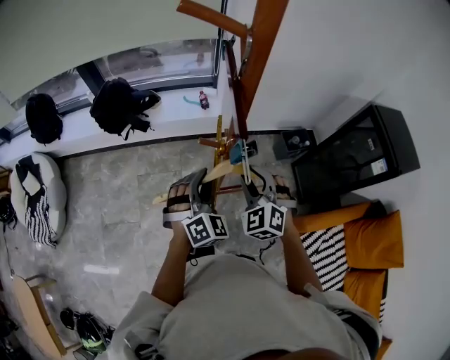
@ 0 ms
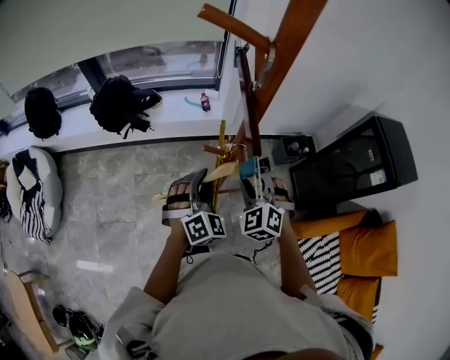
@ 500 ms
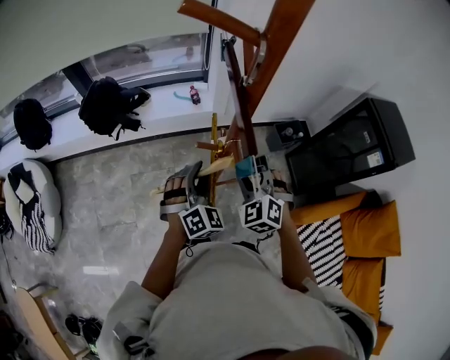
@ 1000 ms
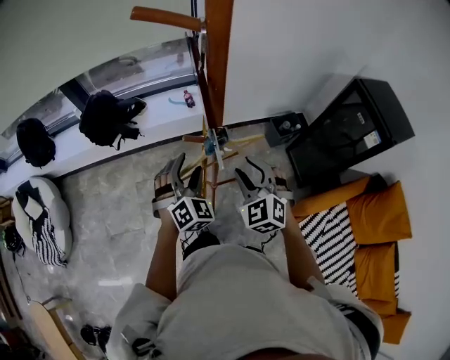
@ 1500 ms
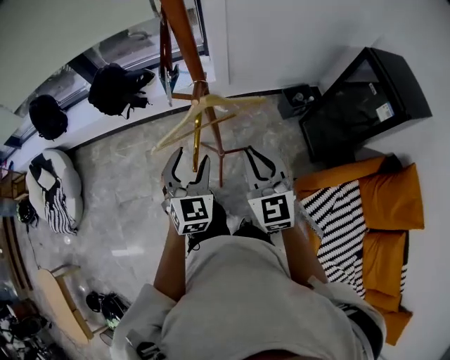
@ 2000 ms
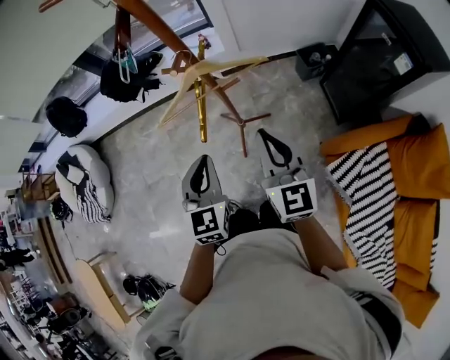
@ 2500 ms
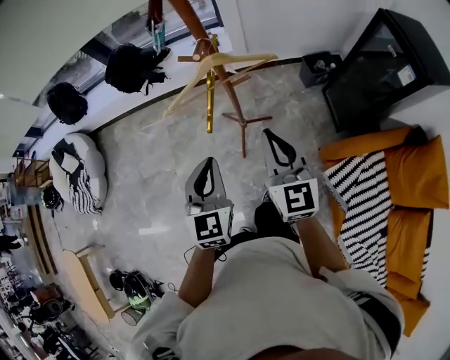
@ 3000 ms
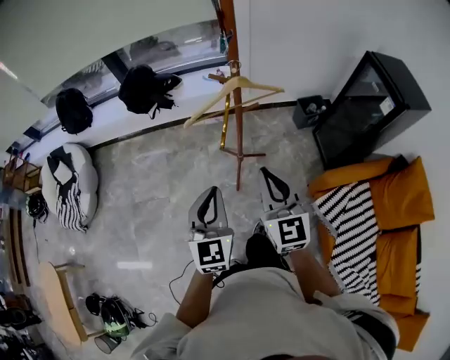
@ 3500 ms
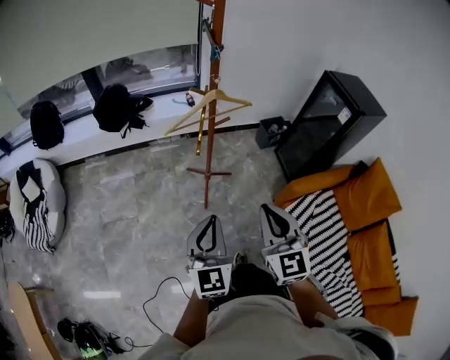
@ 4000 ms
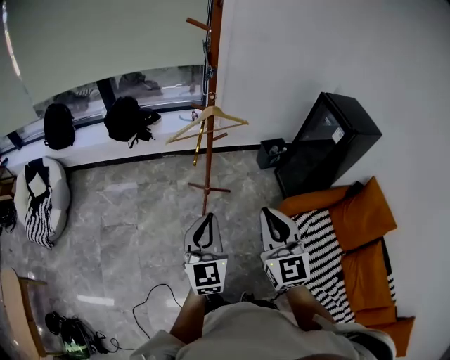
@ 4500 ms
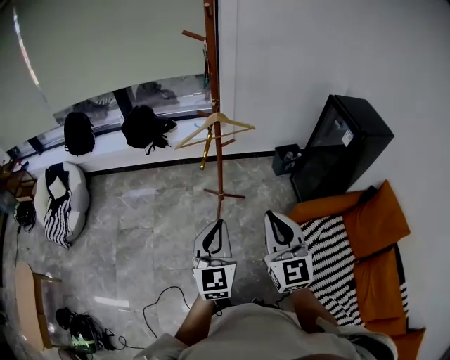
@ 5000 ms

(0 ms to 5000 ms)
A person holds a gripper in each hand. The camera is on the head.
0 ms - 2500 ms: The right gripper goes some 20 cm backward and to the right, rotates around the line of its fingers by some 50 degrees, clockwise from behind, and closes. Meanwhile the left gripper goes approximately 20 cm backward, rotates around the line of its fingers by roughly 40 degrees, counterclockwise from behind, and closes.
2500 ms - 5000 ms: The grippers both shift backward by about 30 cm.

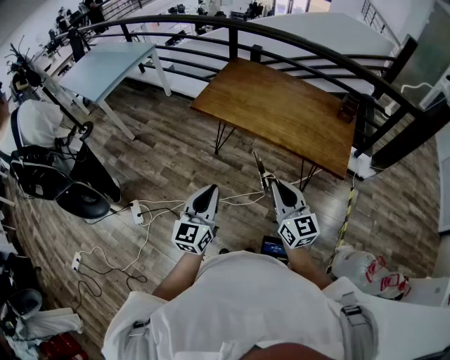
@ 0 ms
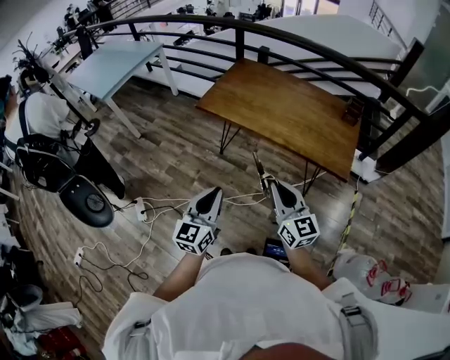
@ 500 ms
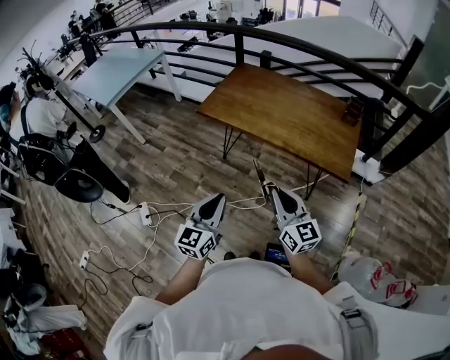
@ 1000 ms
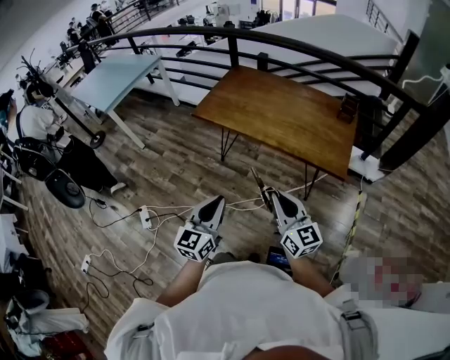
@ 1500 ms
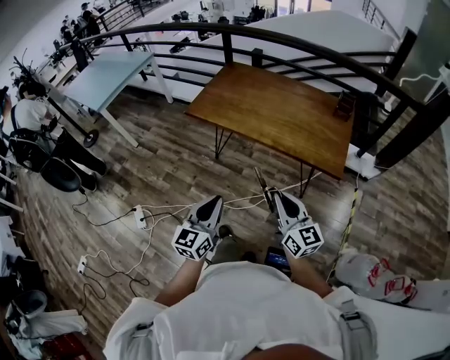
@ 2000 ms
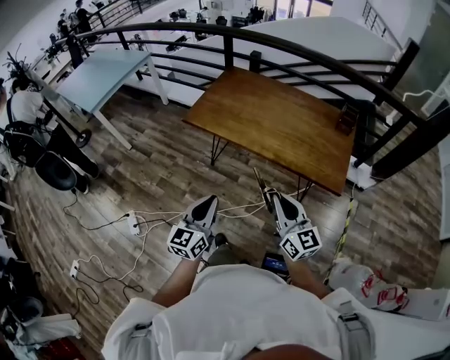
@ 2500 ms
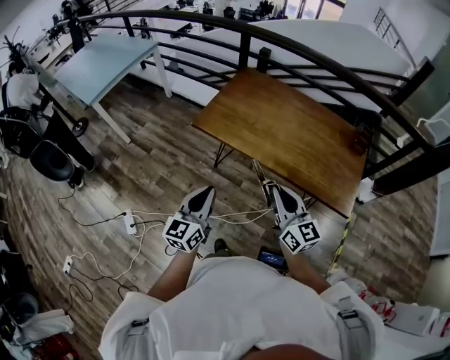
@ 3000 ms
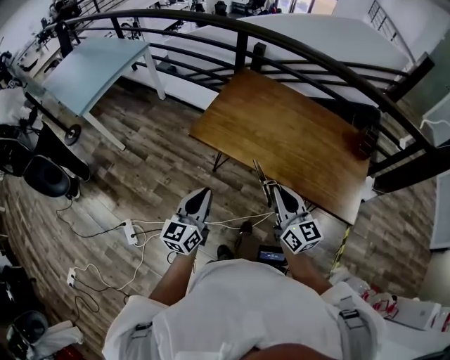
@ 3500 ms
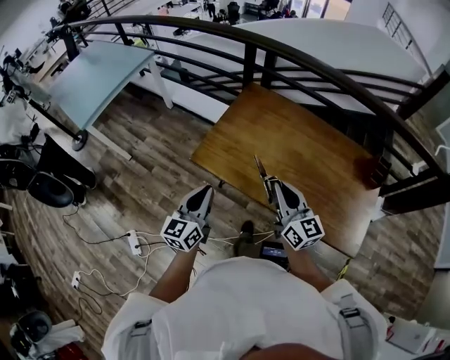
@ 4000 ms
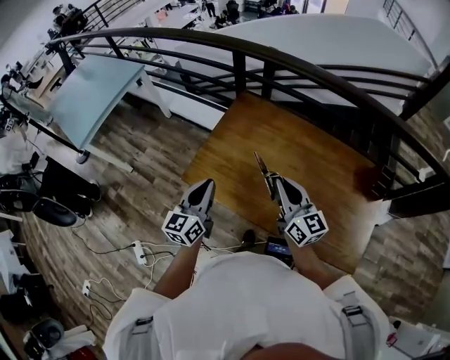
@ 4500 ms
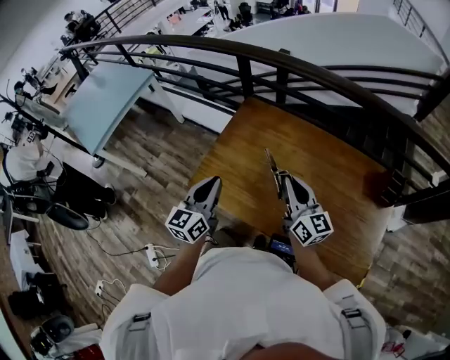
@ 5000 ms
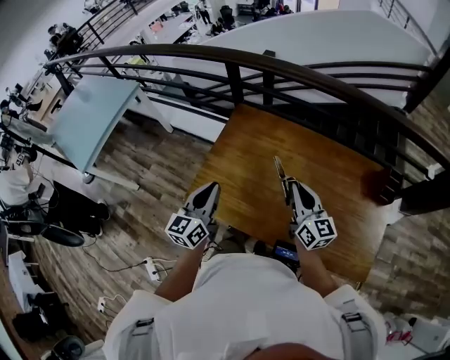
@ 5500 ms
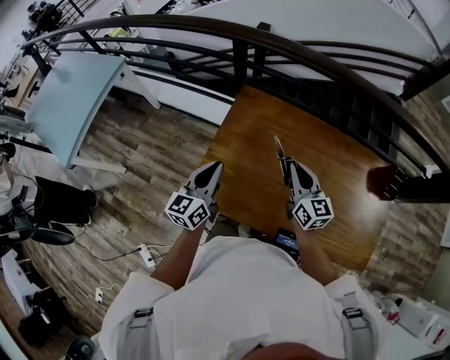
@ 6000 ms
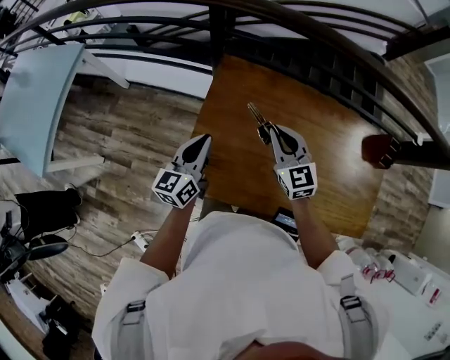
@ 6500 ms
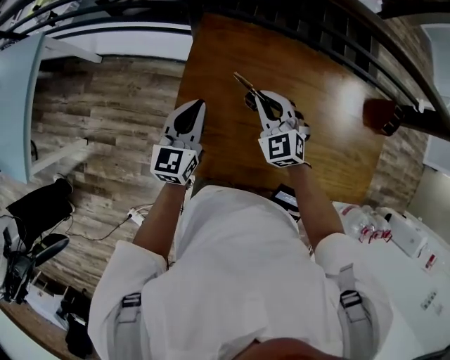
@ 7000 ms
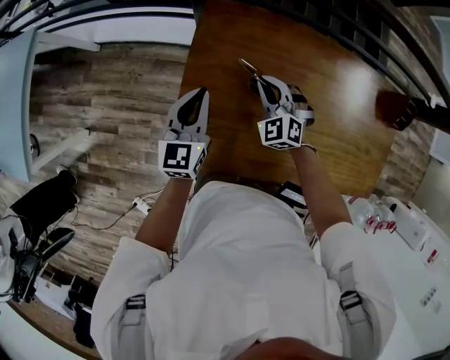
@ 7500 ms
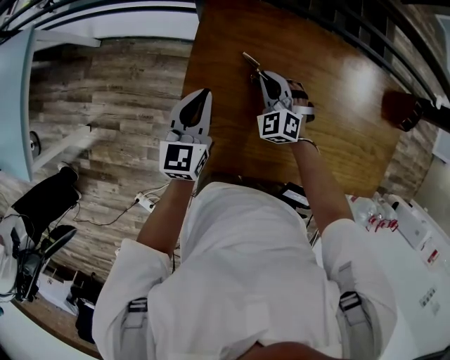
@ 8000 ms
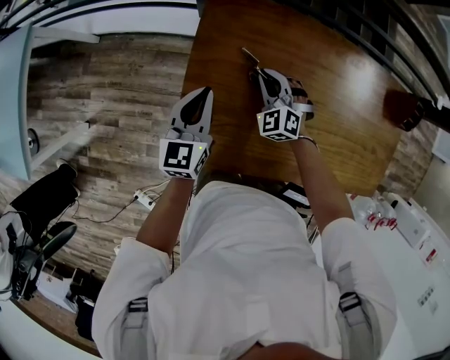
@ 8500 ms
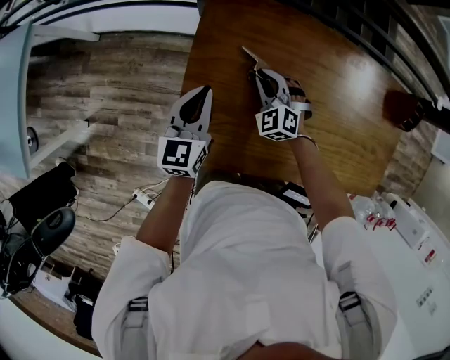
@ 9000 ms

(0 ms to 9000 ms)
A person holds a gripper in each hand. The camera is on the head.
0 ms - 2000 ms: The two grippers go some 10 cm to the right.
2000 ms - 4500 ms: The two grippers travel together, forward, about 60 cm.
4500 ms - 7000 ms: The left gripper travels forward and downward by some 30 cm, and swivels roughly 20 degrees. The right gripper is displaced forward, downward and to the left by about 30 cm, and points its fingers some 30 degrees further downward.
7000 ms - 9000 ms: The left gripper goes roughly 5 cm downward. The right gripper travels downward by about 15 cm.

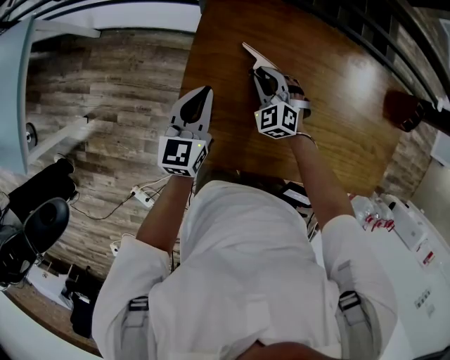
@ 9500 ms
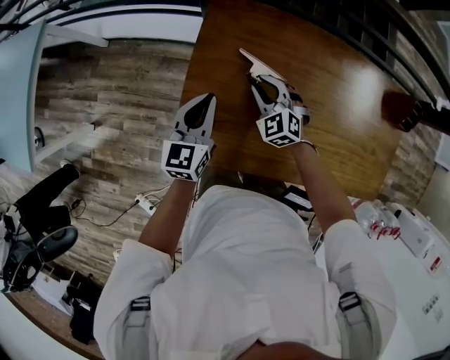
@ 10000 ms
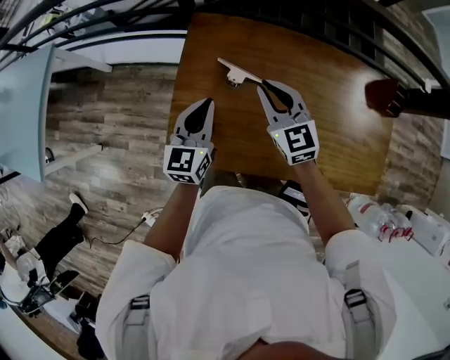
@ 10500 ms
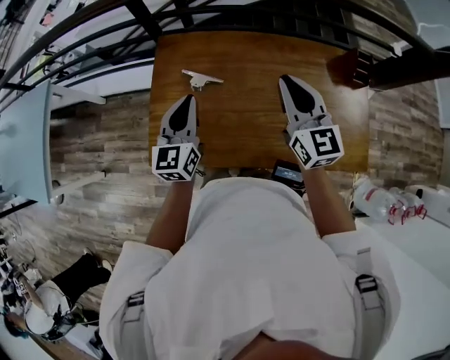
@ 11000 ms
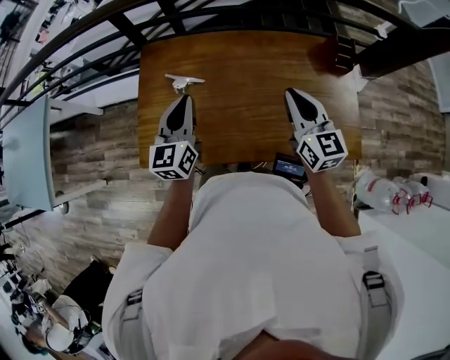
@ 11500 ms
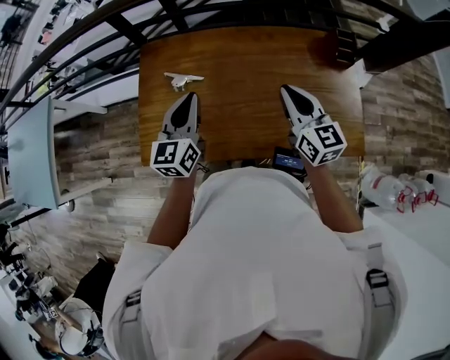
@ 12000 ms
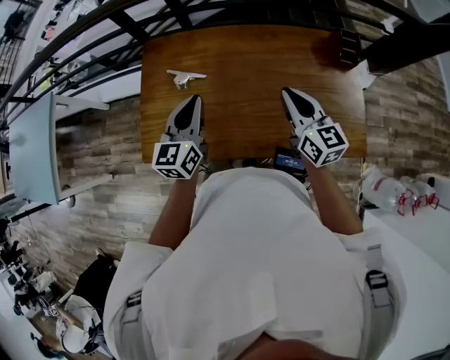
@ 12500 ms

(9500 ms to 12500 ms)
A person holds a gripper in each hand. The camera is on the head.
9500 ms - 11000 ms: The left gripper heads to the right, upward and backward, covering roughly 25 cm, while the right gripper shifts roughly 40 cm upward, to the right and backward, and angles its fingers upward, by some 40 degrees.
11000 ms - 12500 ms: The left gripper shifts approximately 10 cm to the right. The right gripper moves to the right, downward and backward, some 15 cm.

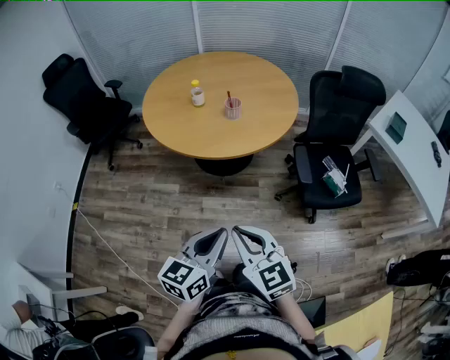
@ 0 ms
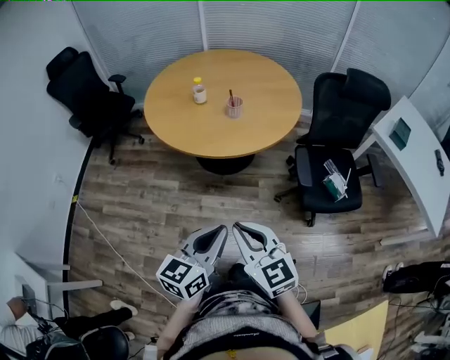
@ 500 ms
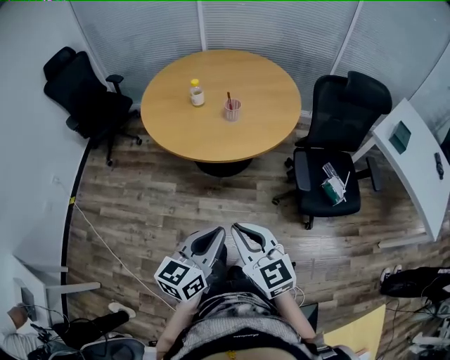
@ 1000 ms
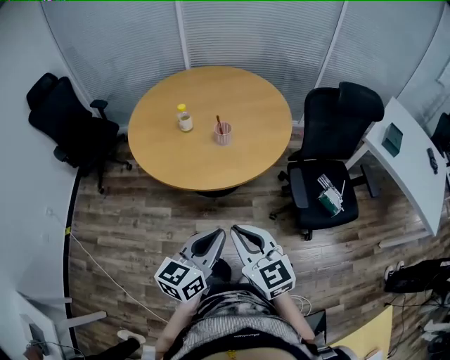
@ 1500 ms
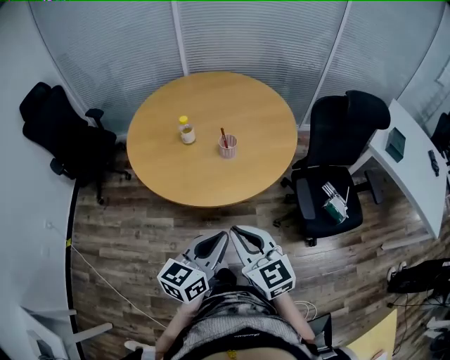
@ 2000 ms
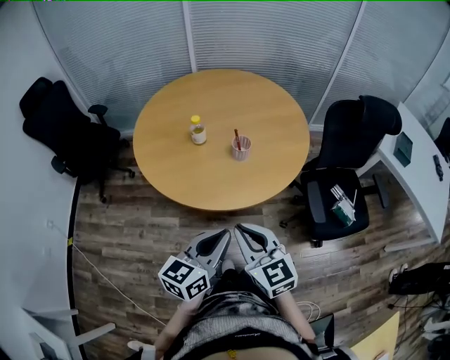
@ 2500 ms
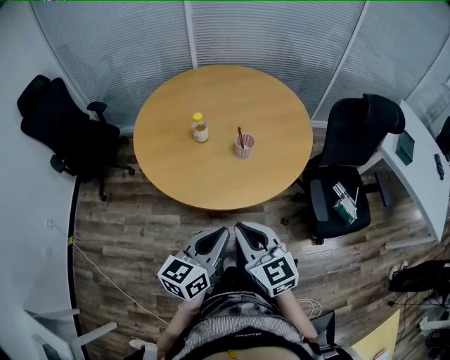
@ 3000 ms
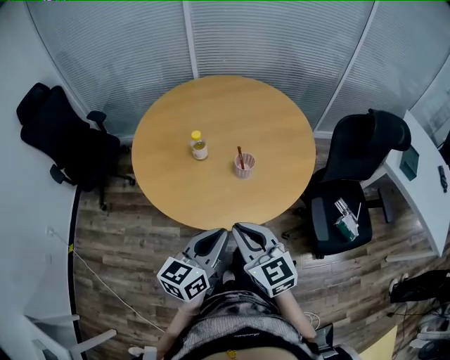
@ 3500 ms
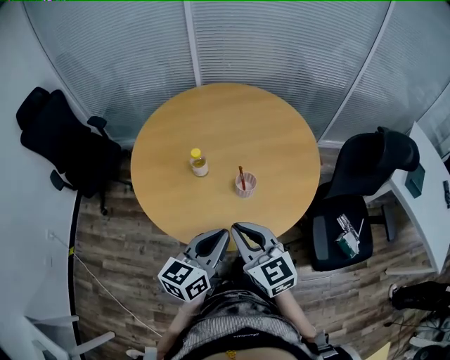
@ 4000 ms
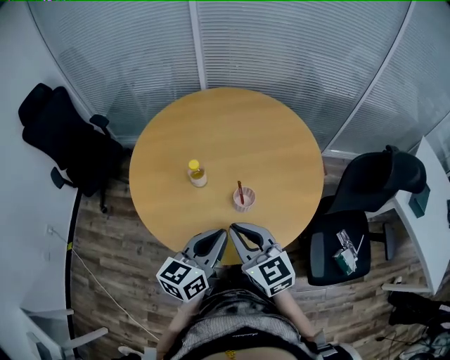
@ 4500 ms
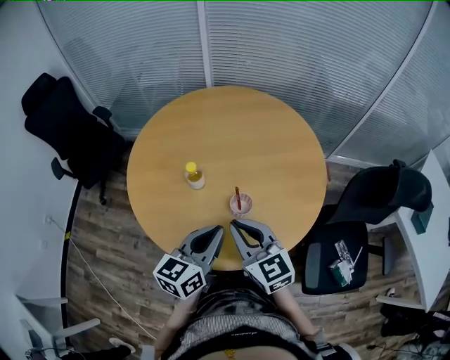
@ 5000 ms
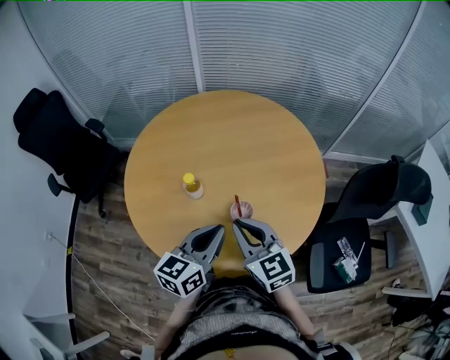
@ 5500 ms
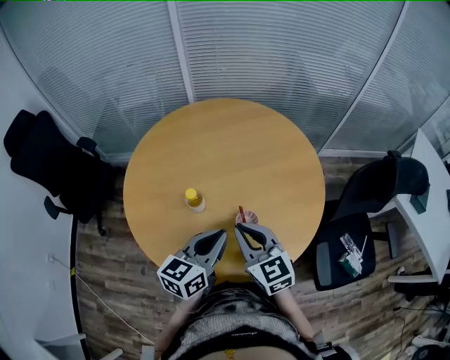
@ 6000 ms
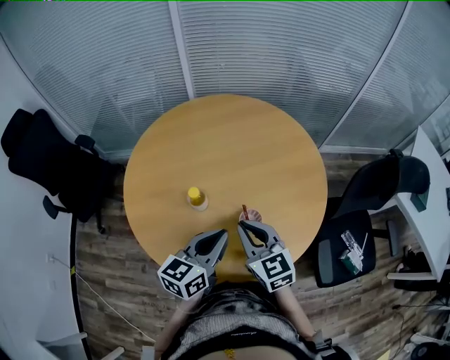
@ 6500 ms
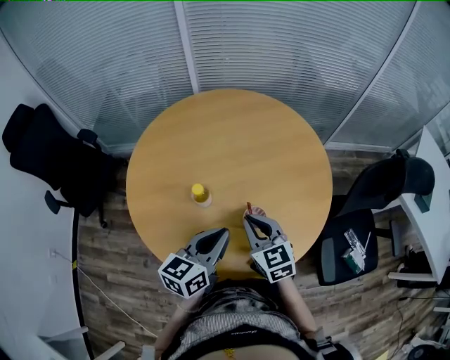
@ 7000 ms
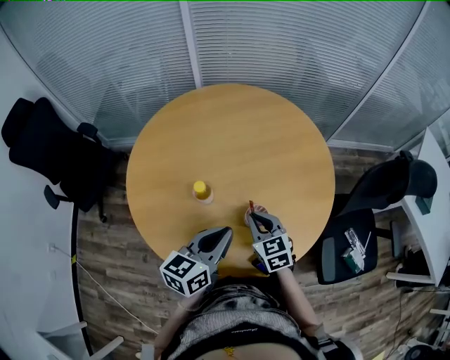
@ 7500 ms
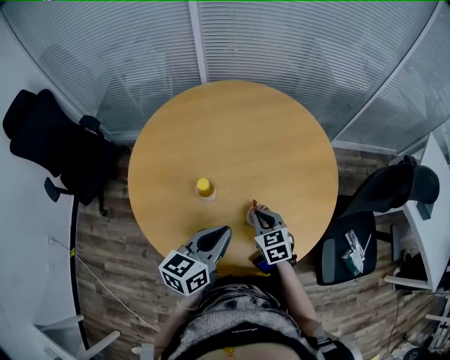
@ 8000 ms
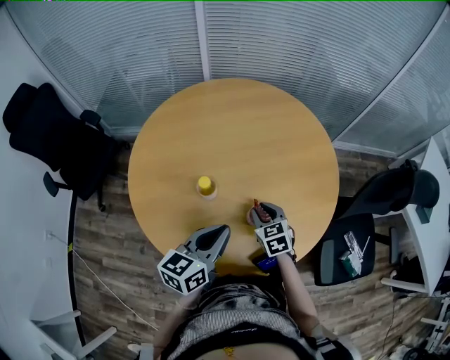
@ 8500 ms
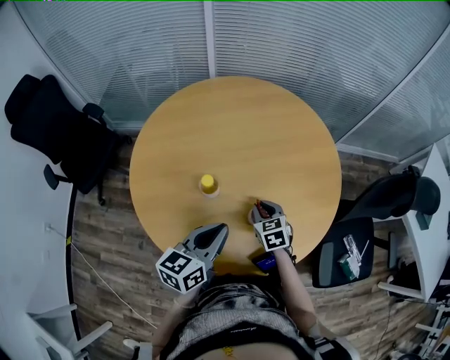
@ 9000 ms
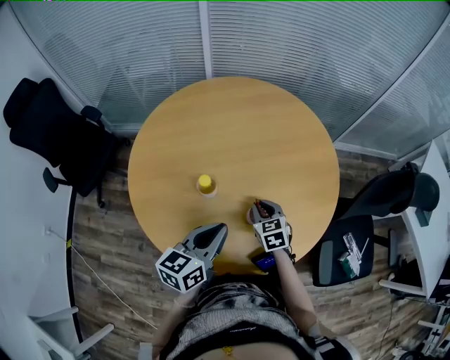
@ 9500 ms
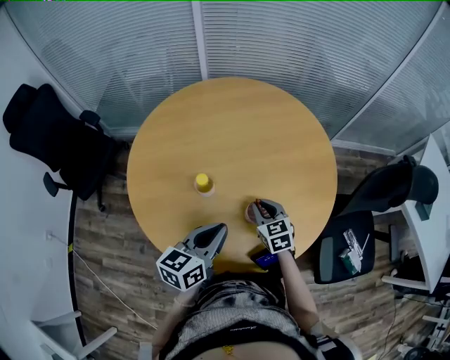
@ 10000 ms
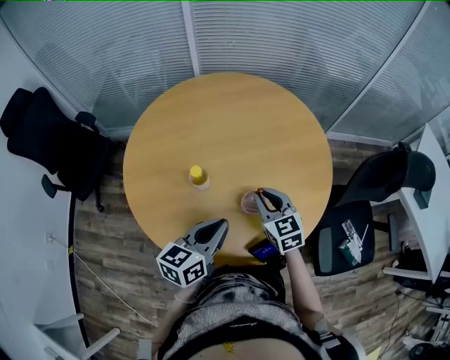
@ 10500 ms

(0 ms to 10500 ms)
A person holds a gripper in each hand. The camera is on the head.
0 ms - 2000 ms: The grippers both shift forward by approximately 20 cm.
2000 ms - 4000 ms: The two grippers go about 20 cm forward.
4000 ms - 6500 ms: Both grippers travel together forward, approximately 20 cm.
6500 ms - 8500 ms: The right gripper heads downward, covering approximately 15 cm, and changes its angle by about 20 degrees.
8500 ms - 10500 ms: The right gripper is displaced upward by about 10 cm.
